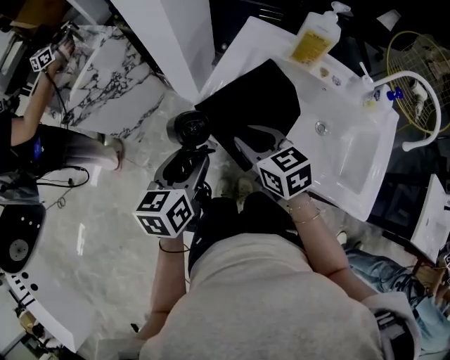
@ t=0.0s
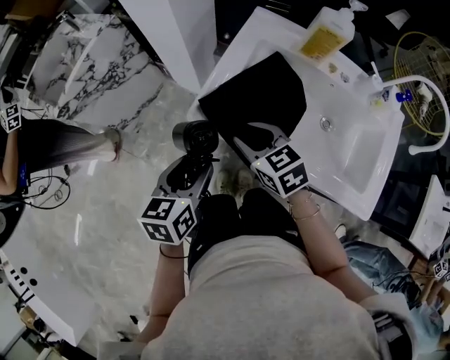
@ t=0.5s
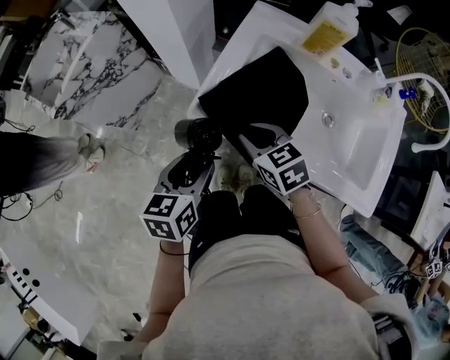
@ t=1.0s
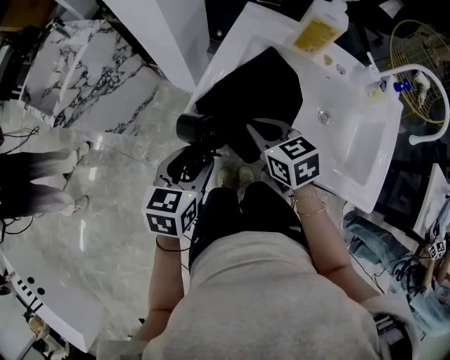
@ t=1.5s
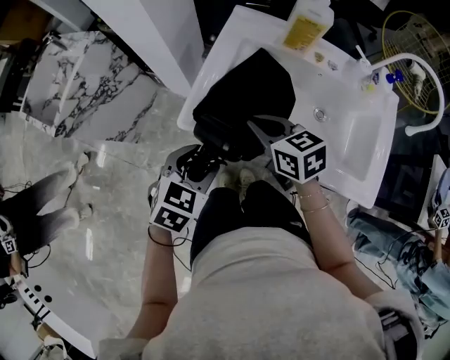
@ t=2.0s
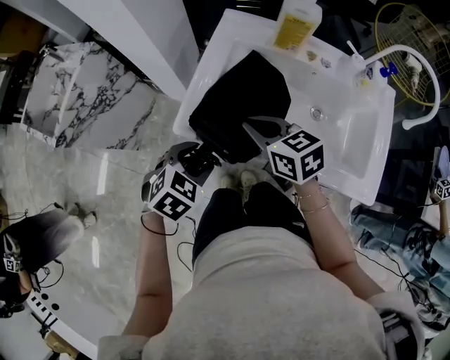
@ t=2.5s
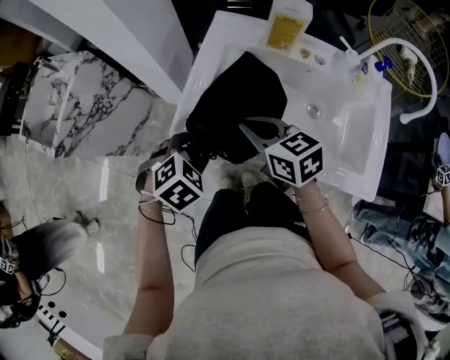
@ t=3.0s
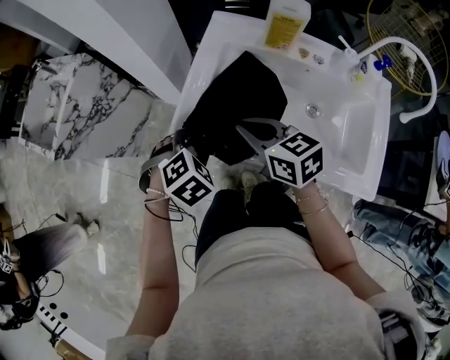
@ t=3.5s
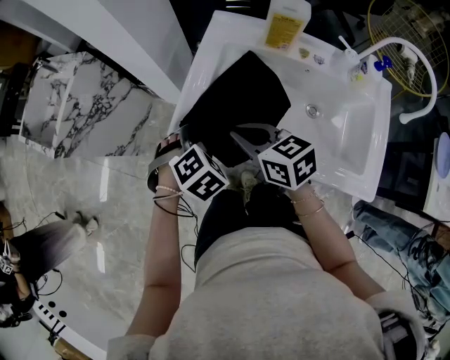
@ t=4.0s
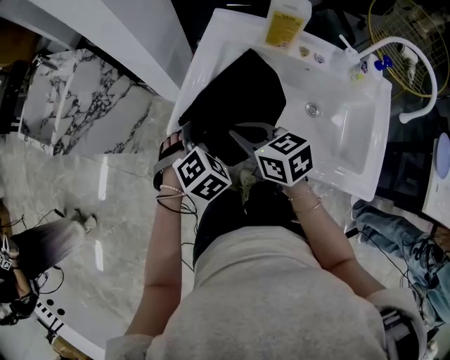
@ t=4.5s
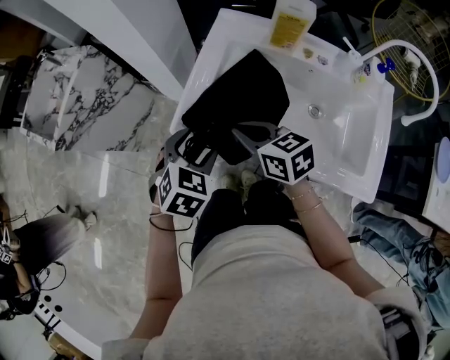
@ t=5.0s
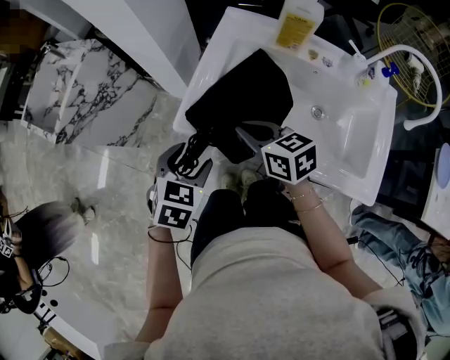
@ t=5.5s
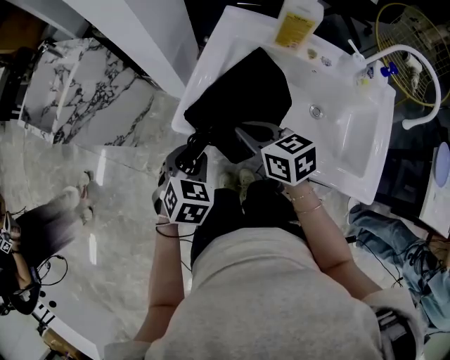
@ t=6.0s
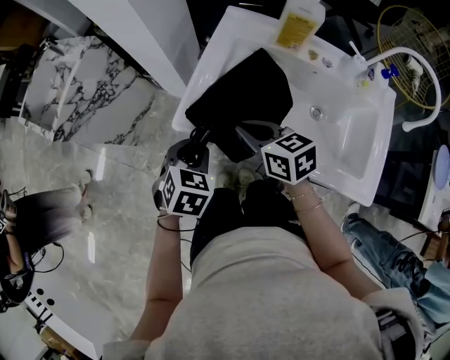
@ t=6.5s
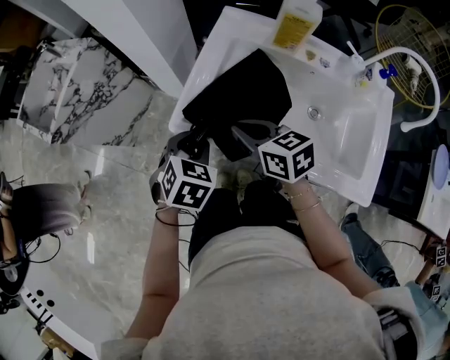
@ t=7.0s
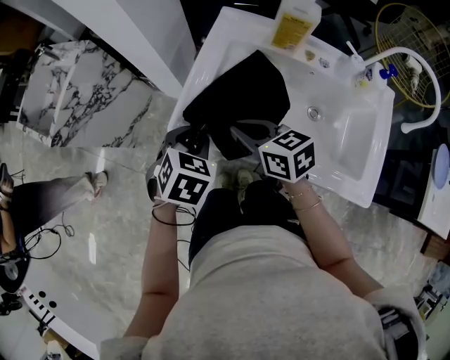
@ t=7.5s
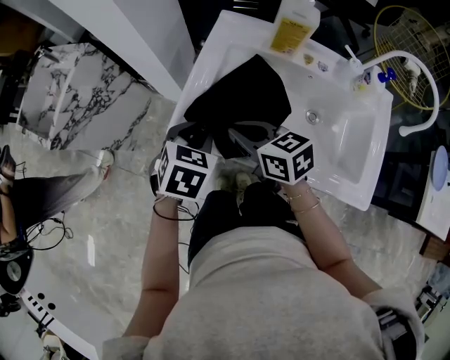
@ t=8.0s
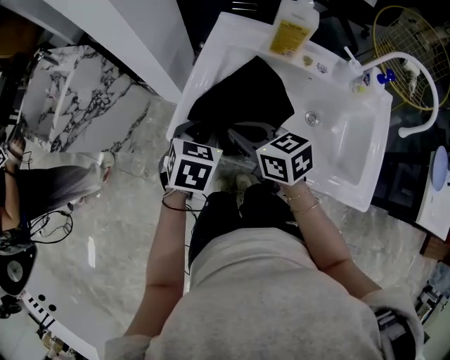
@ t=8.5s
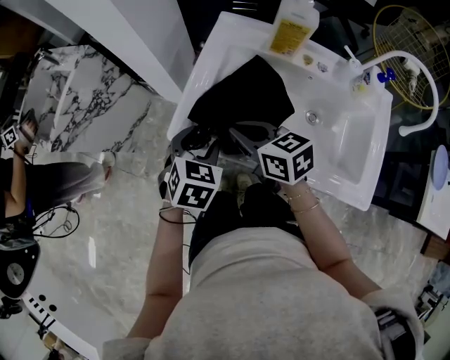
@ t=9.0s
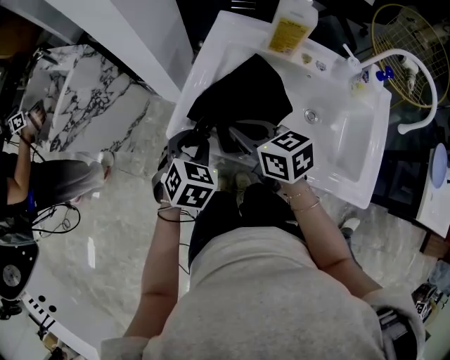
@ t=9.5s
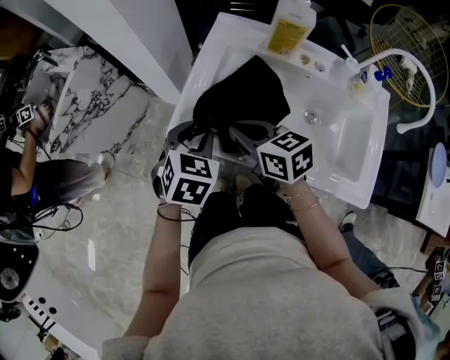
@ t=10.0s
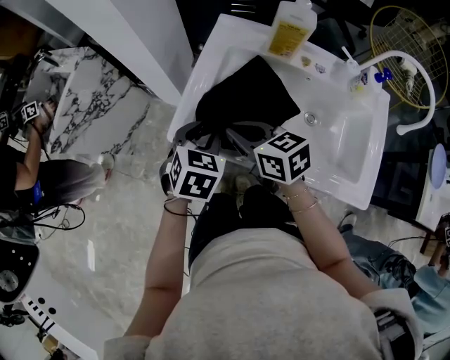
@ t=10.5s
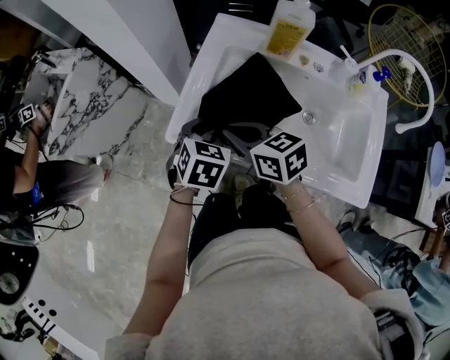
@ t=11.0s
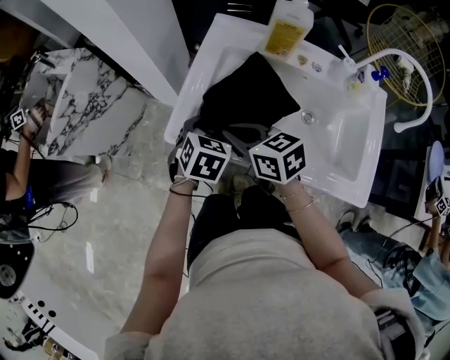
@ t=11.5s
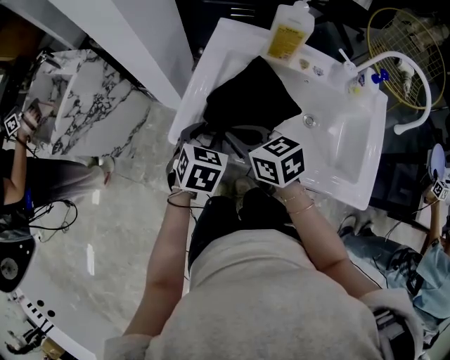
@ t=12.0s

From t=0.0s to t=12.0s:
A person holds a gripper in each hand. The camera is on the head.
From t=0.0s to t=2.0s: The left gripper shifts by some 5 cm, and rotates about 50 degrees, while the right gripper closes up.
From t=2.0s to t=4.0s: The left gripper heads forward, covering some 5 cm, and swivels about 40 degrees.
From t=4.0s to t=6.0s: The left gripper moves to the left, approximately 5 cm, and turns by roughly 30 degrees.
From t=6.0s to t=8.0s: The left gripper travels to the right and forward by some 10 cm.
From t=8.0s to t=10.0s: The grippers stay close to where they were, moving slightly.

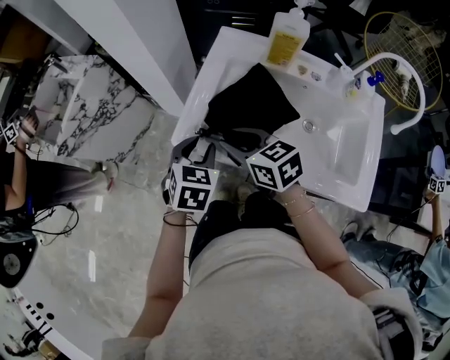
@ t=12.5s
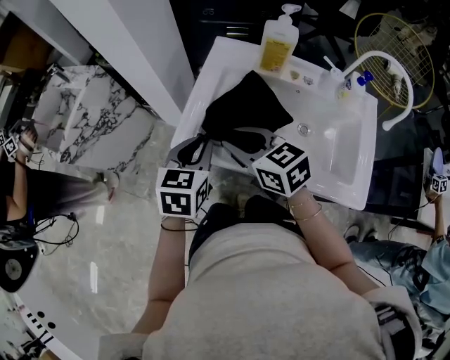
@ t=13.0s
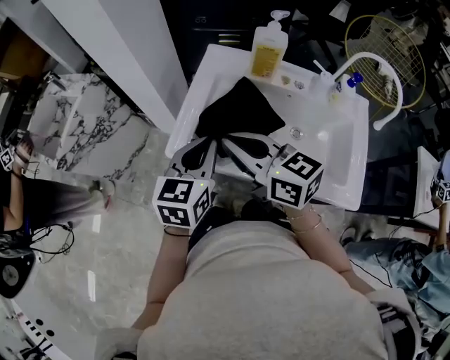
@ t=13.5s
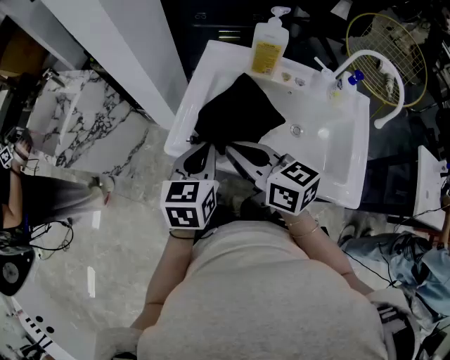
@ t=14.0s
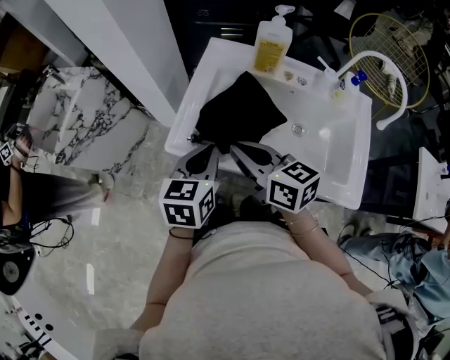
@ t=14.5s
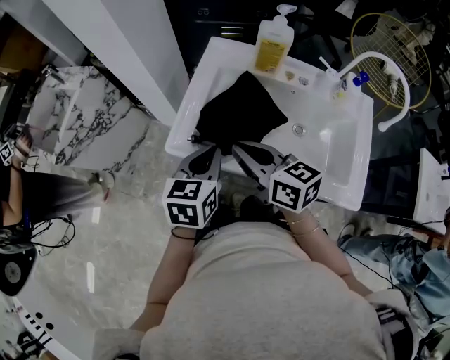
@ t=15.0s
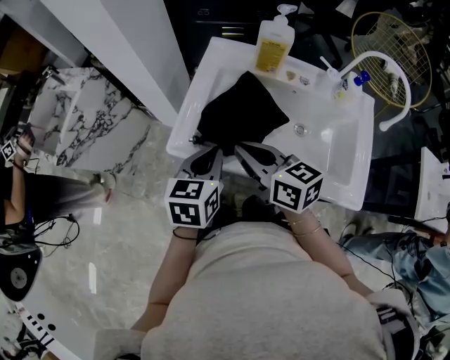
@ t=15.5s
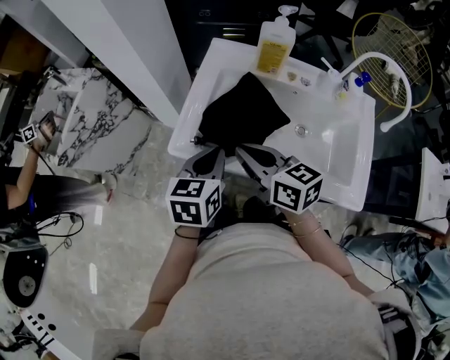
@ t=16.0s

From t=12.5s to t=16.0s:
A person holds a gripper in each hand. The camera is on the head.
From t=12.5s to t=14.5s: Both grippers move upward, roughly 5 cm. The left gripper swivels approximately 30 degrees, and closes up; the right gripper rotates some 20 degrees, and closes its fingers.
From t=14.5s to t=16.0s: There are only small adjustments of the grippers.

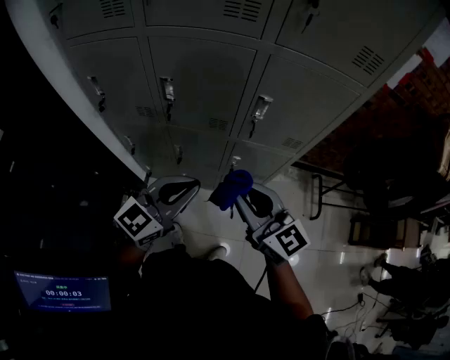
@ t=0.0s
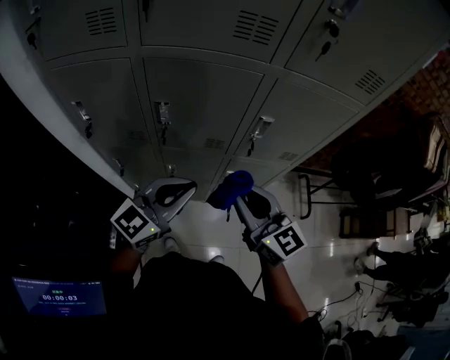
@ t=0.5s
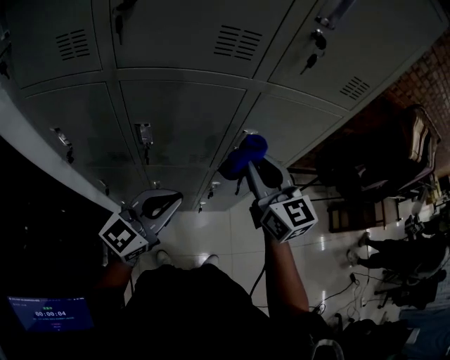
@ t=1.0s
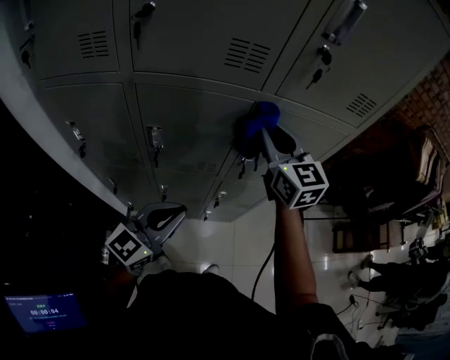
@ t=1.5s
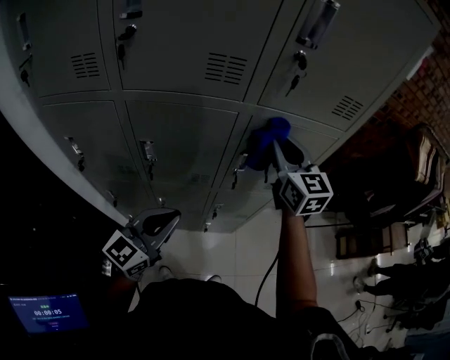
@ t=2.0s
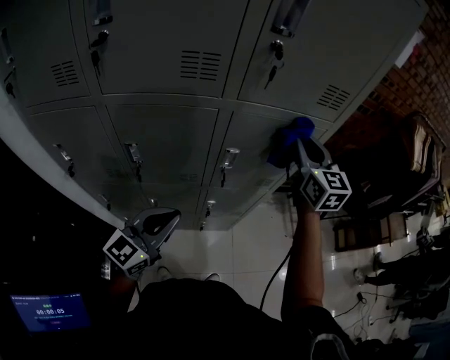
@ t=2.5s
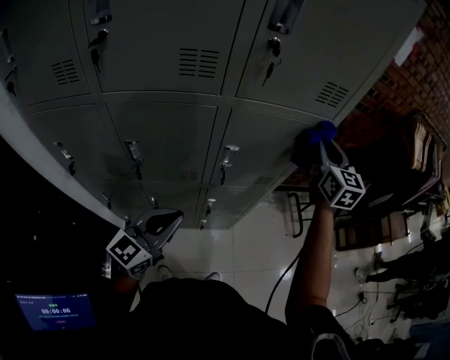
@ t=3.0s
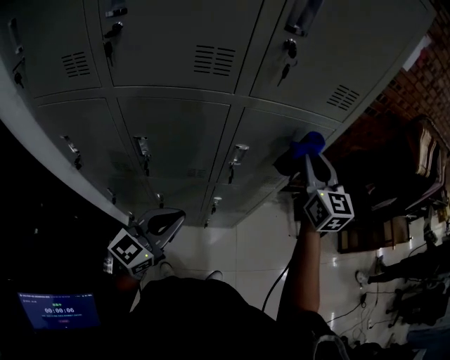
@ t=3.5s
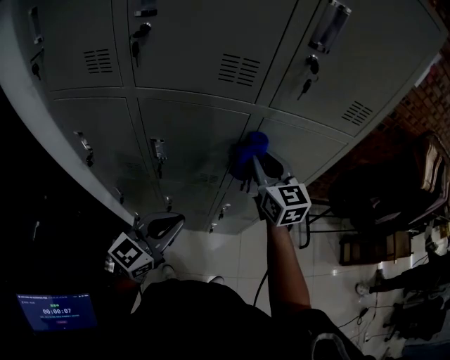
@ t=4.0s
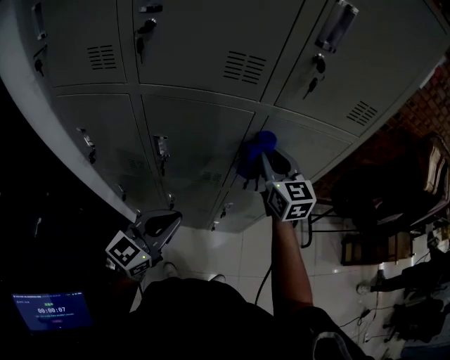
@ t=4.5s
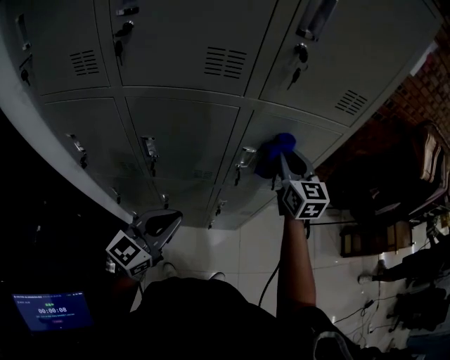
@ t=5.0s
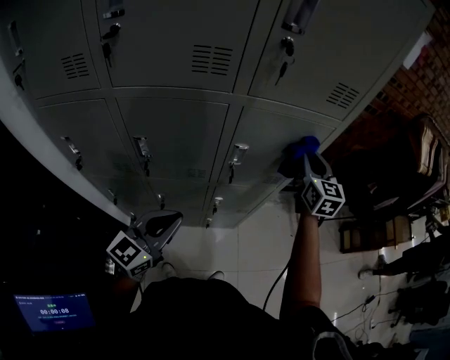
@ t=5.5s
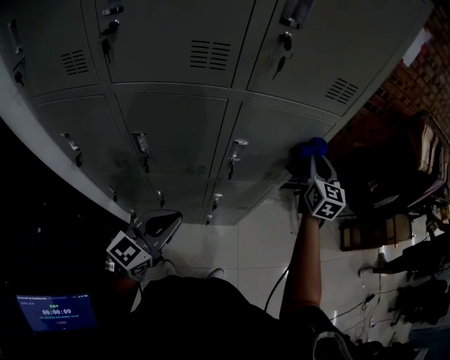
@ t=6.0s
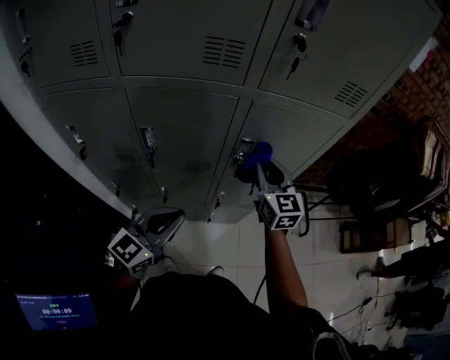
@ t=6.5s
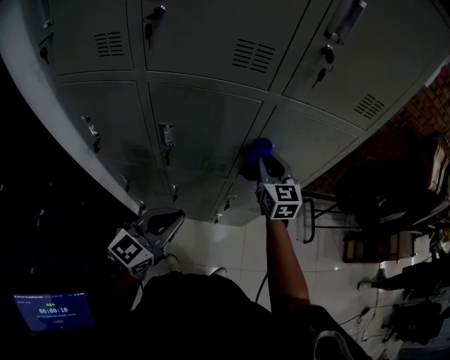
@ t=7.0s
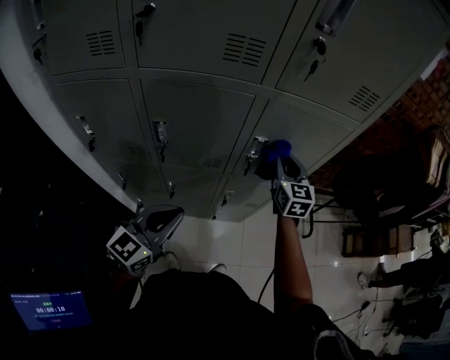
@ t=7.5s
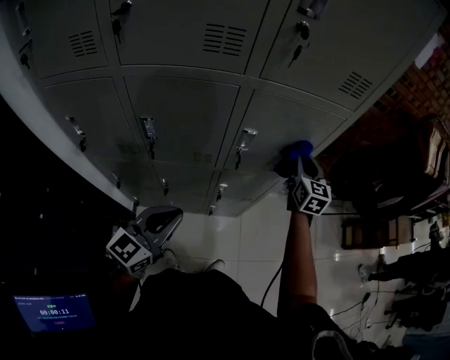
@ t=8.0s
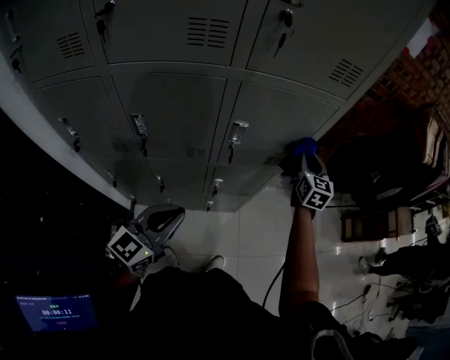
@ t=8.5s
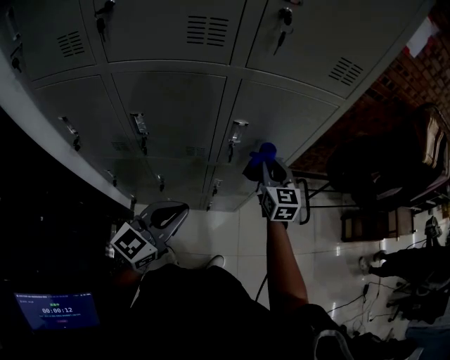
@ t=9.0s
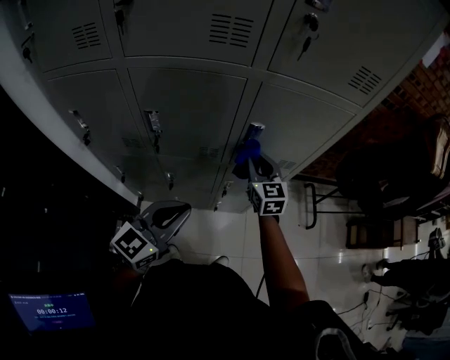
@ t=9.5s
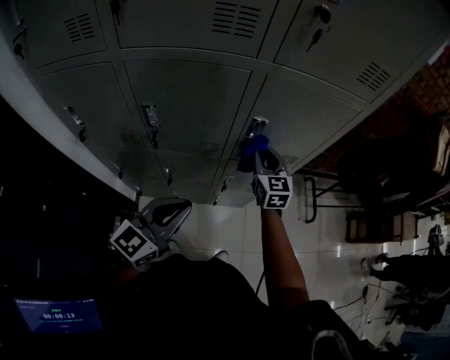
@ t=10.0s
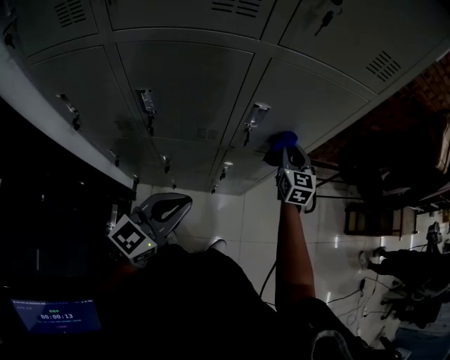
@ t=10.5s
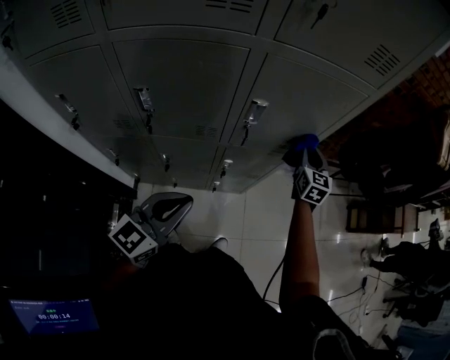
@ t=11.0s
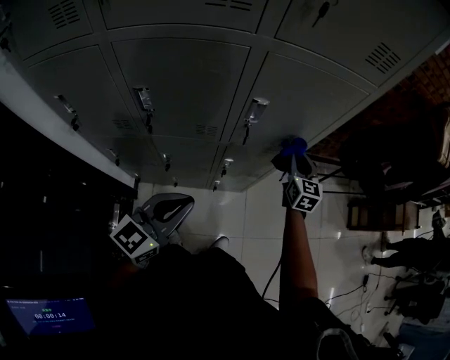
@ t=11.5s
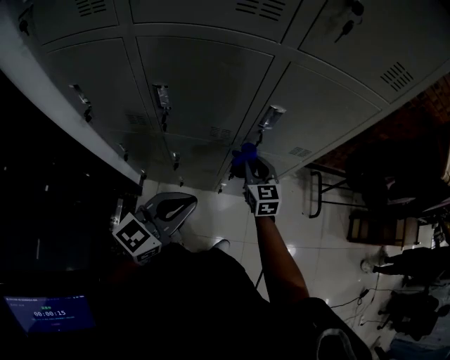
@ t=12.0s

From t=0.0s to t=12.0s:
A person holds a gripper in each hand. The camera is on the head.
From t=0.0s to t=2.0s: The left gripper goes roughly 10 cm forward and to the left; the right gripper moves forward and upward, approximately 30 cm, and swivels some 30 degrees.
From t=2.0s to t=4.0s: The right gripper is displaced downward by roughly 5 cm, and reaches approximately 20 cm to the right, then returns.
From t=4.0s to t=6.0s: The right gripper heads to the right, covering some 25 cm, and swivels about 30 degrees.
From t=6.0s to t=8.0s: The right gripper goes approximately 5 cm downward, and reaches roughly 20 cm to the left, then returns.
From t=8.0s to t=10.0s: The right gripper goes roughly 15 cm to the left and downward.
From t=10.0s to t=12.0s: The right gripper goes roughly 10 cm downward and backward, and goes to the right and returns, approximately 20 cm each way.
